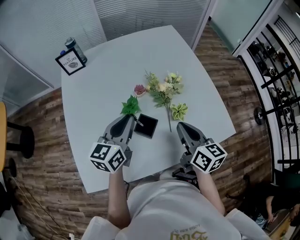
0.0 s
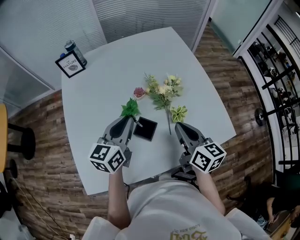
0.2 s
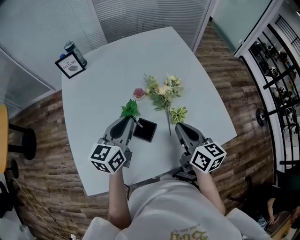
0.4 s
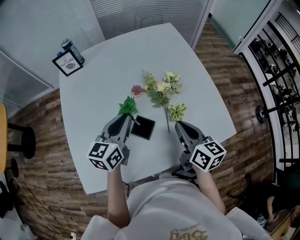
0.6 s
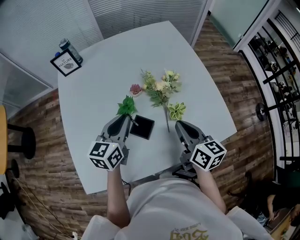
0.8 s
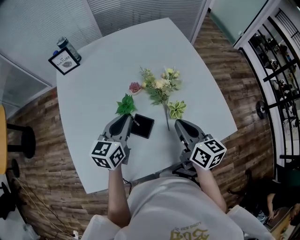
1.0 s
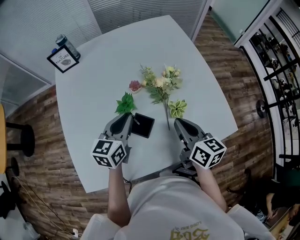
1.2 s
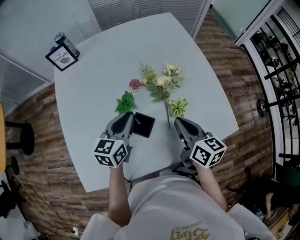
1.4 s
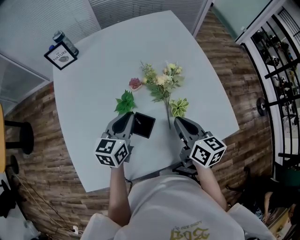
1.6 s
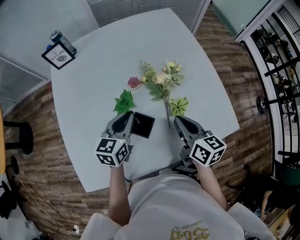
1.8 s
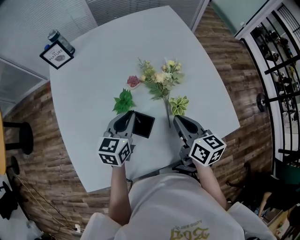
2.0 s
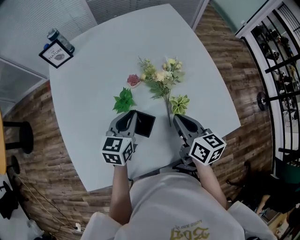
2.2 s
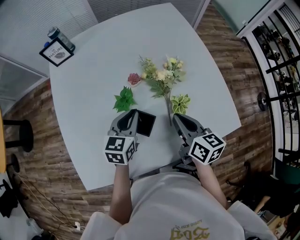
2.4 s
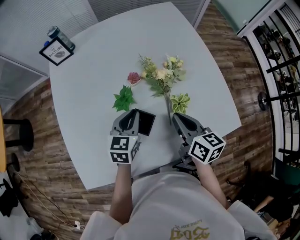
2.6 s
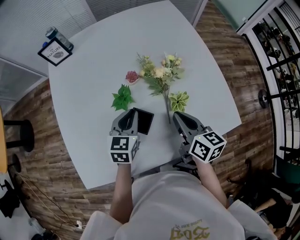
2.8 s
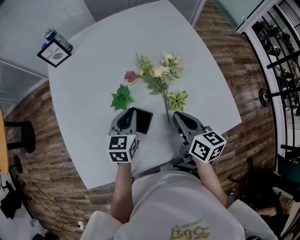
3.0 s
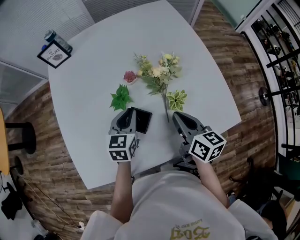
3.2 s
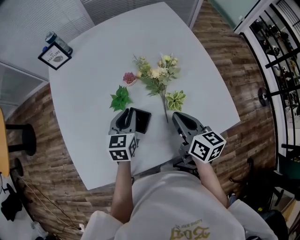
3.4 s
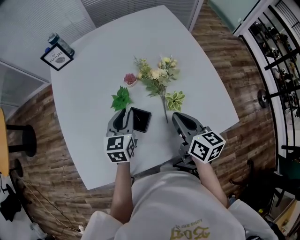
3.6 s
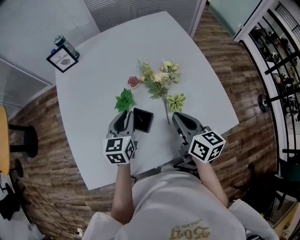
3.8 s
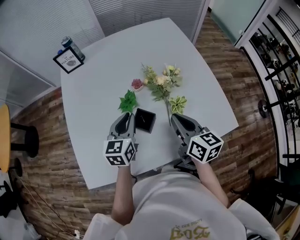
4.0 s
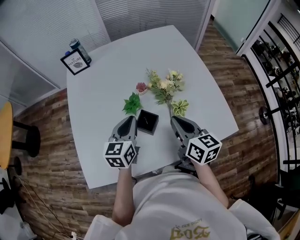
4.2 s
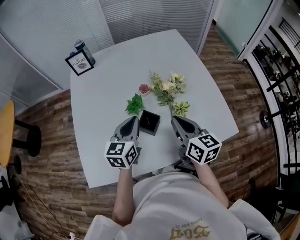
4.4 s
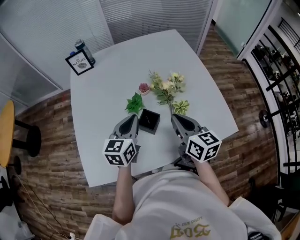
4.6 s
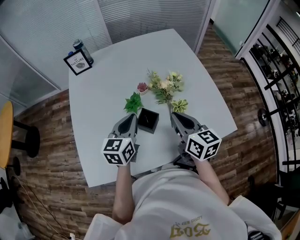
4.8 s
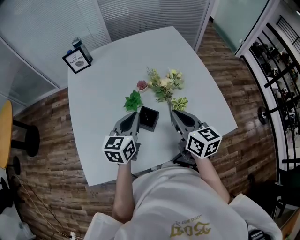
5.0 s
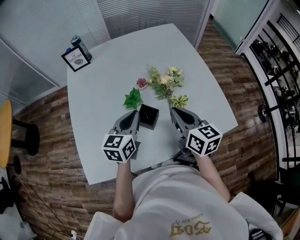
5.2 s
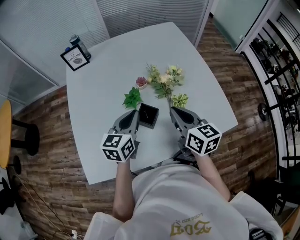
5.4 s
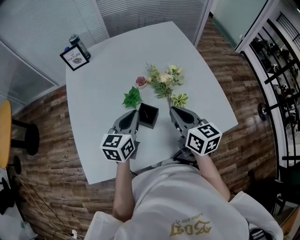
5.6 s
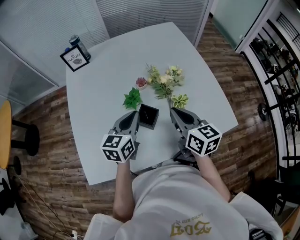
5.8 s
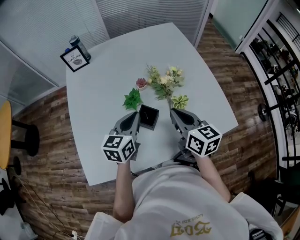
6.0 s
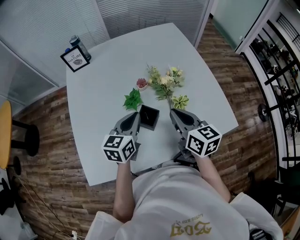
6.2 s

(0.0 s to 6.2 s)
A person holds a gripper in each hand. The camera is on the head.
0.0 s - 1.6 s: The right gripper shifts by roughly 5 cm. The left gripper moves downward, roughly 10 cm.
1.6 s - 3.2 s: The left gripper shifts roughly 5 cm downward.
3.2 s - 4.6 s: The left gripper travels upward and backward by approximately 10 cm. Meanwhile the right gripper is displaced upward by about 10 cm.
4.6 s - 6.2 s: The grippers stay close to where they were, moving slightly.

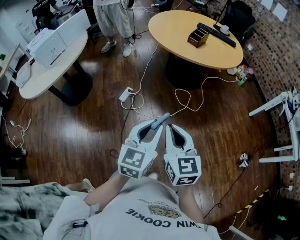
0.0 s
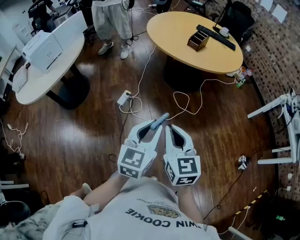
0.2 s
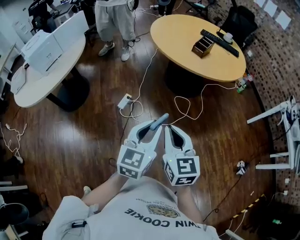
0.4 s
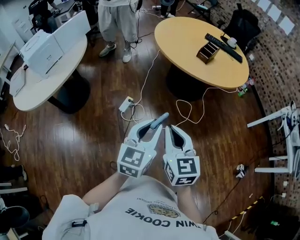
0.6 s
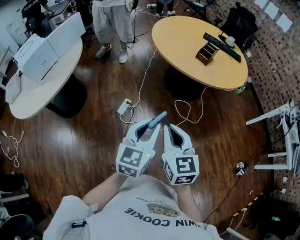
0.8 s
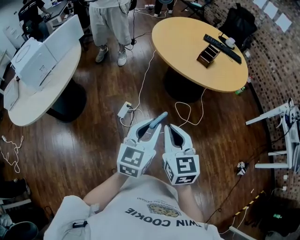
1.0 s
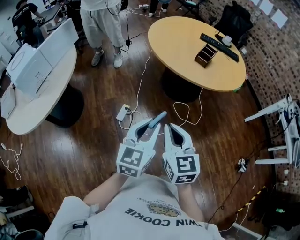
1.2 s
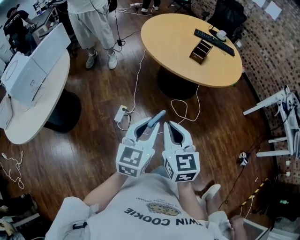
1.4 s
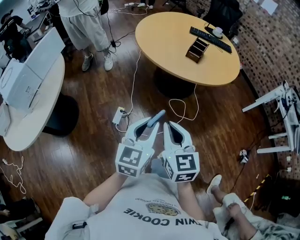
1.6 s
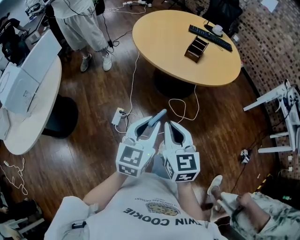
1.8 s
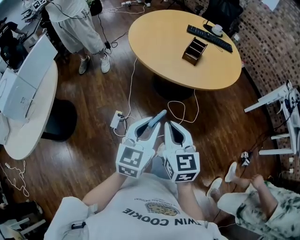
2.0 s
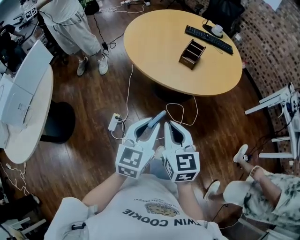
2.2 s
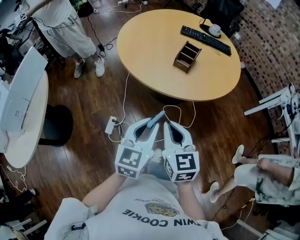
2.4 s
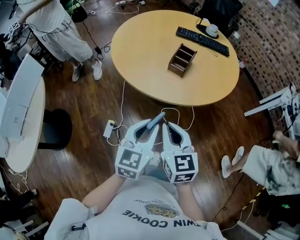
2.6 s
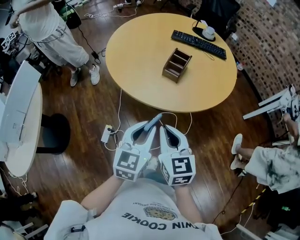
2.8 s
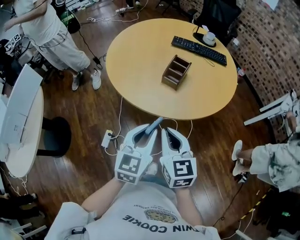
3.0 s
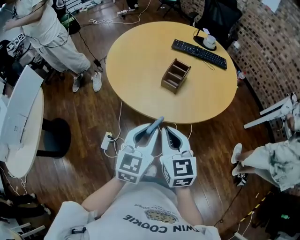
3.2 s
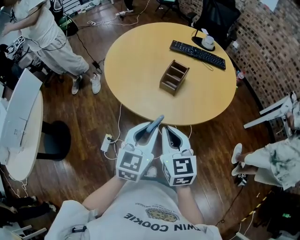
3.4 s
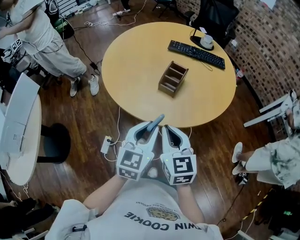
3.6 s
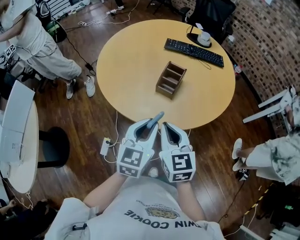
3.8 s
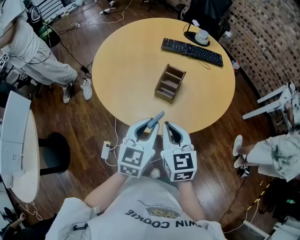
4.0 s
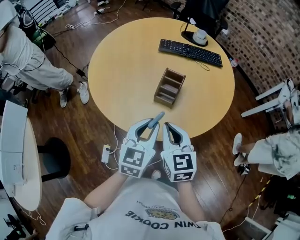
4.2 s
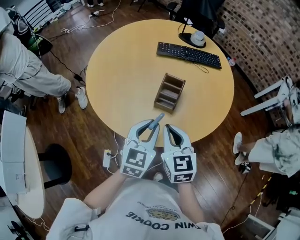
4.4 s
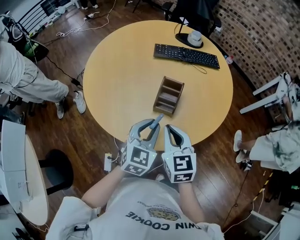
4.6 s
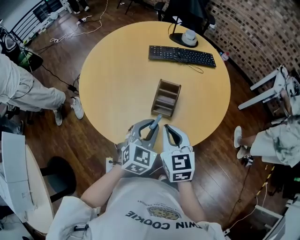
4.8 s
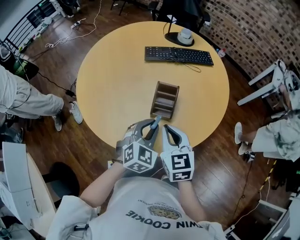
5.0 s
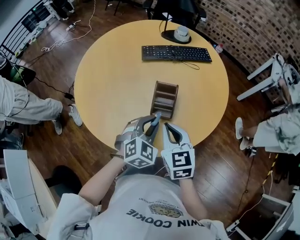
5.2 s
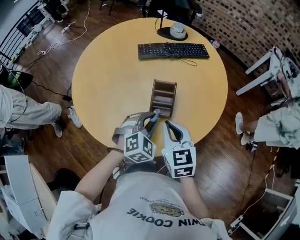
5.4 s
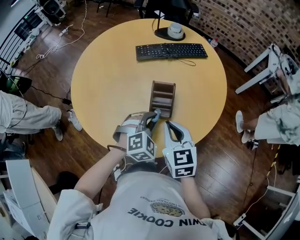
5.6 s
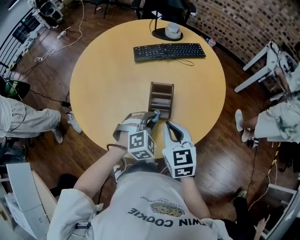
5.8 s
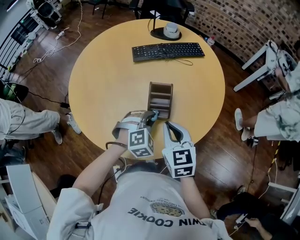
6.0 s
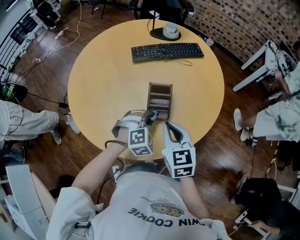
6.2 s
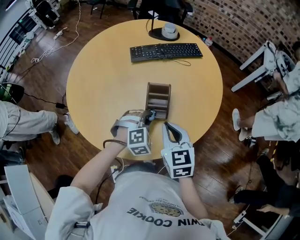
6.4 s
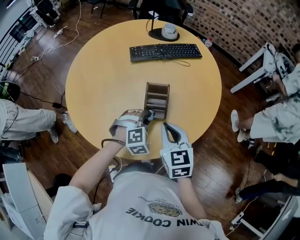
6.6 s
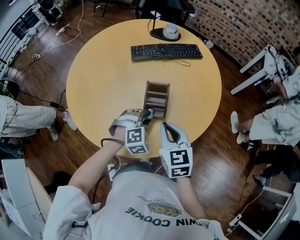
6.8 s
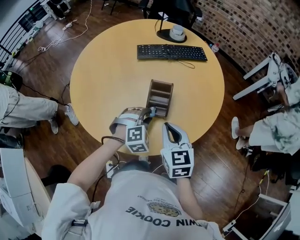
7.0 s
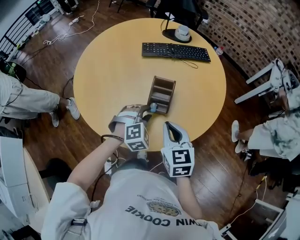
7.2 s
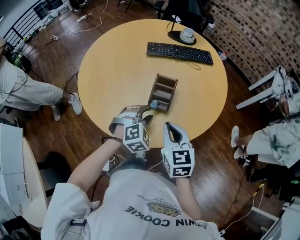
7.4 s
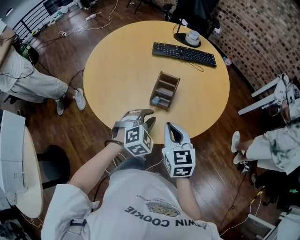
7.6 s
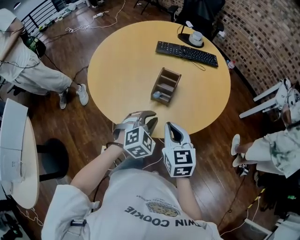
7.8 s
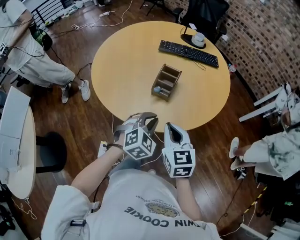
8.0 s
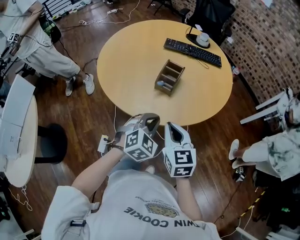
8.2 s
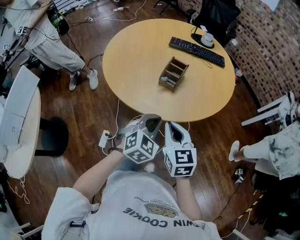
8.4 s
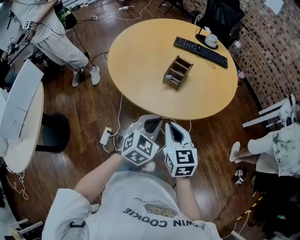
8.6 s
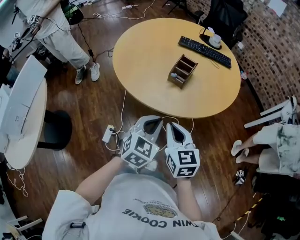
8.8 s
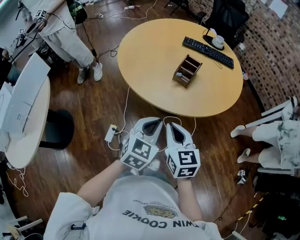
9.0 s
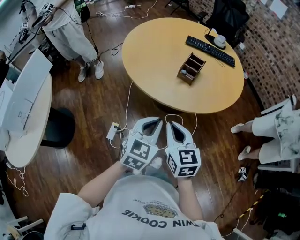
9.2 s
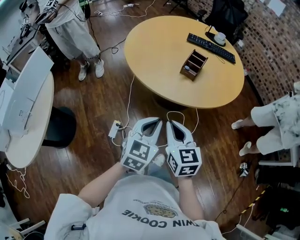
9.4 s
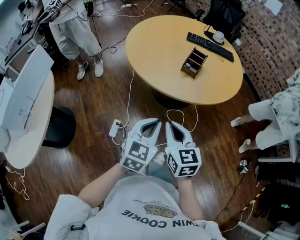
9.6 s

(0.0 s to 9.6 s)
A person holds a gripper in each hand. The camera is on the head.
0.0 s - 1.6 s: Both grippers move forward and to the left, some 30 cm.
1.6 s - 3.2 s: The two grippers go about 35 cm forward and to the right.
3.2 s - 4.8 s: The grippers both shift forward by approximately 20 cm. The left gripper swivels about 30 degrees.
4.8 s - 6.4 s: The left gripper heads downward and forward, covering approximately 15 cm, and rotates around the line of its fingers by approximately 50 degrees, clockwise from behind; the right gripper shifts by about 5 cm.
6.4 s - 8.0 s: The right gripper travels backward by approximately 15 cm, while the left gripper is displaced backward and upward by approximately 20 cm, and changes its angle by about 40 degrees.
8.0 s - 9.6 s: The grippers both shift backward and to the left by approximately 25 cm. The left gripper turns by approximately 40 degrees.

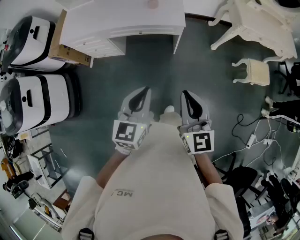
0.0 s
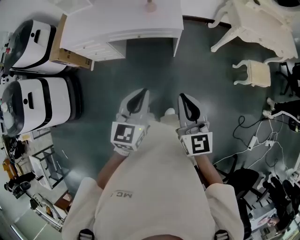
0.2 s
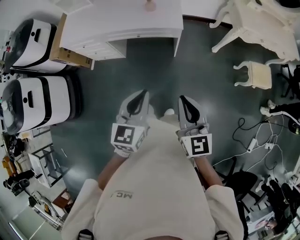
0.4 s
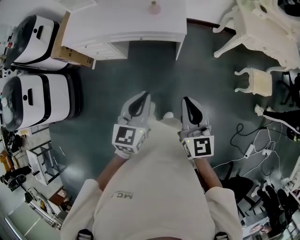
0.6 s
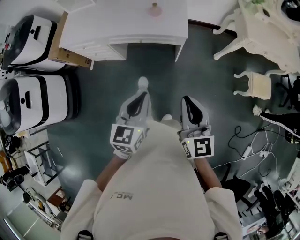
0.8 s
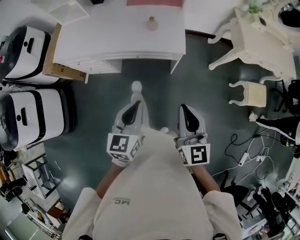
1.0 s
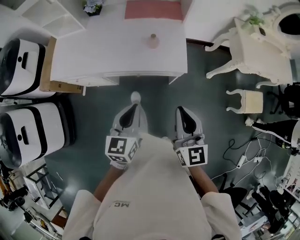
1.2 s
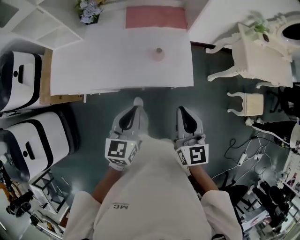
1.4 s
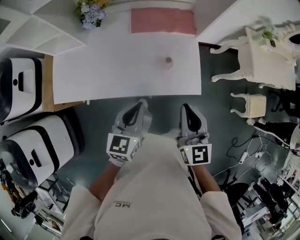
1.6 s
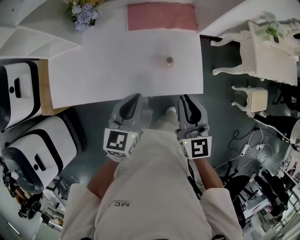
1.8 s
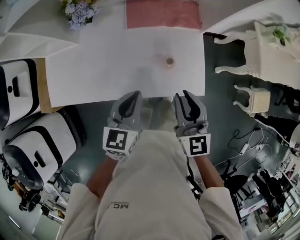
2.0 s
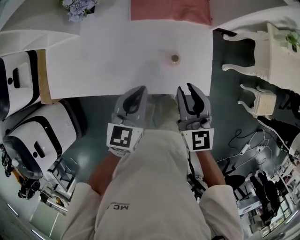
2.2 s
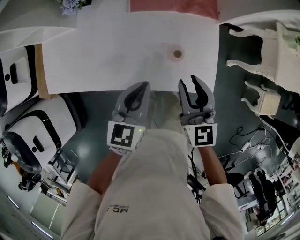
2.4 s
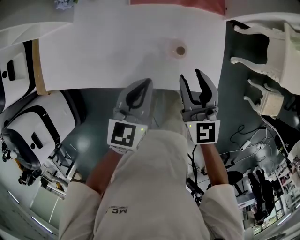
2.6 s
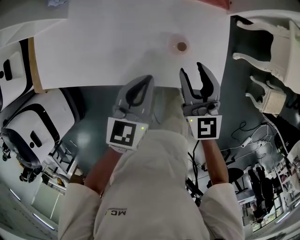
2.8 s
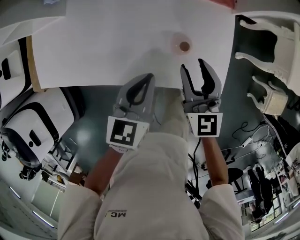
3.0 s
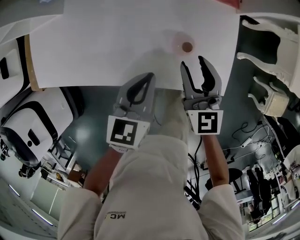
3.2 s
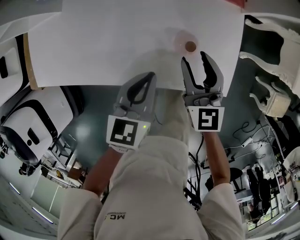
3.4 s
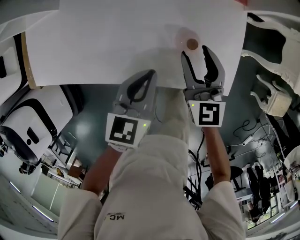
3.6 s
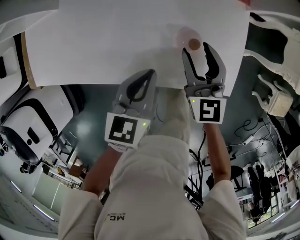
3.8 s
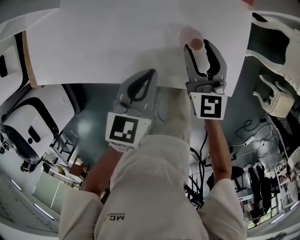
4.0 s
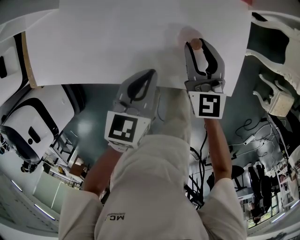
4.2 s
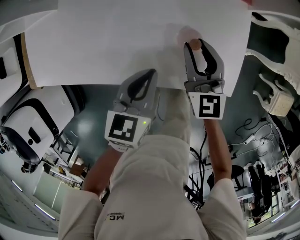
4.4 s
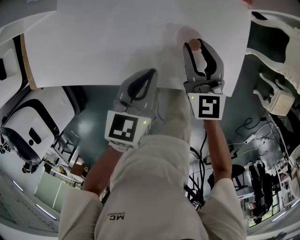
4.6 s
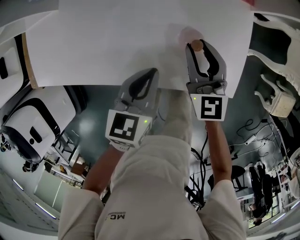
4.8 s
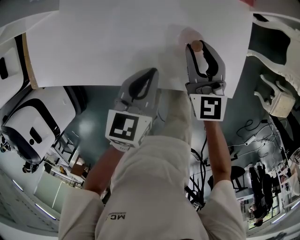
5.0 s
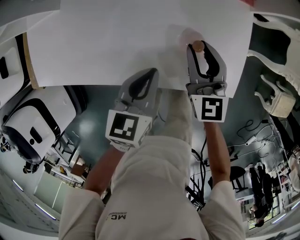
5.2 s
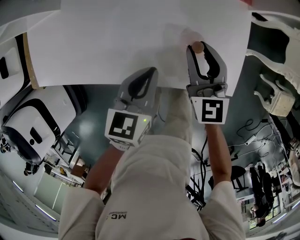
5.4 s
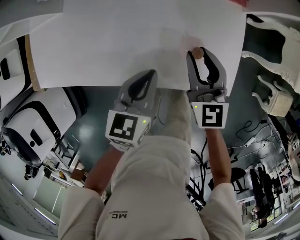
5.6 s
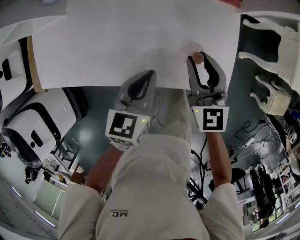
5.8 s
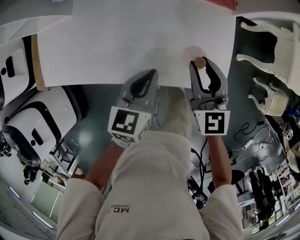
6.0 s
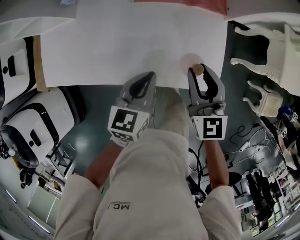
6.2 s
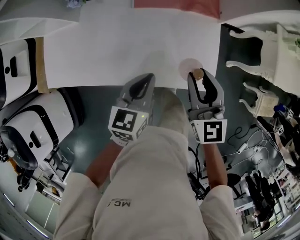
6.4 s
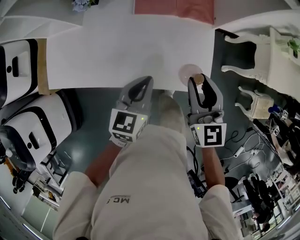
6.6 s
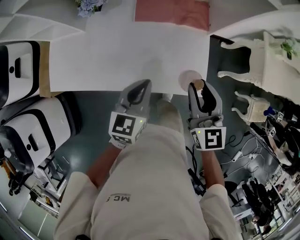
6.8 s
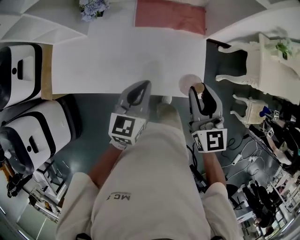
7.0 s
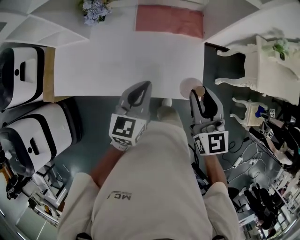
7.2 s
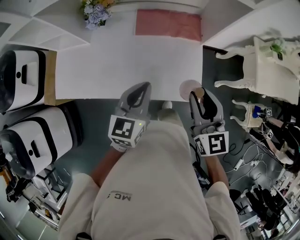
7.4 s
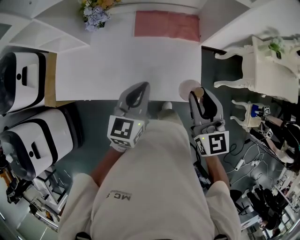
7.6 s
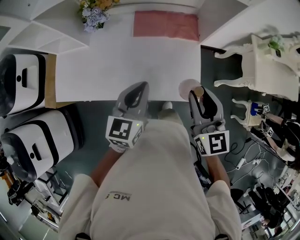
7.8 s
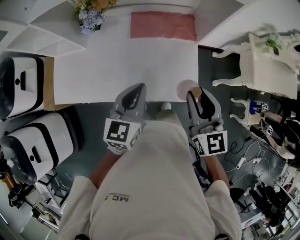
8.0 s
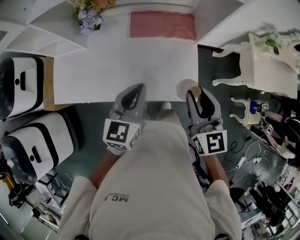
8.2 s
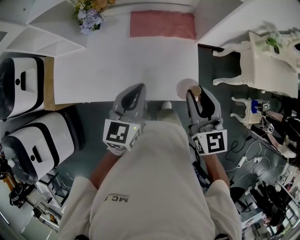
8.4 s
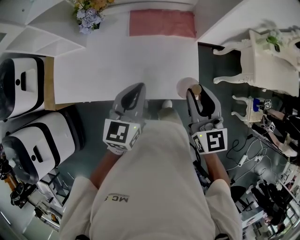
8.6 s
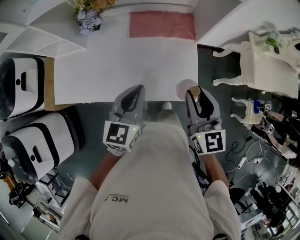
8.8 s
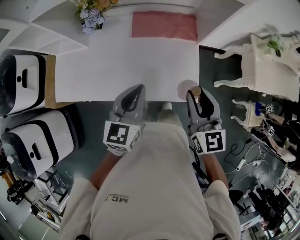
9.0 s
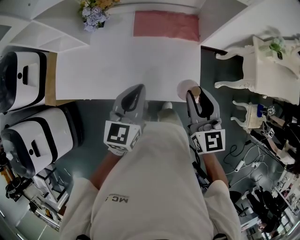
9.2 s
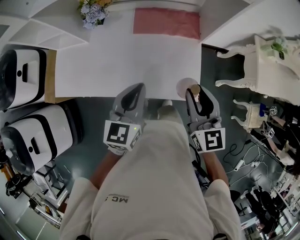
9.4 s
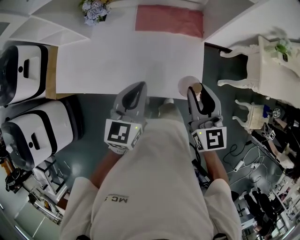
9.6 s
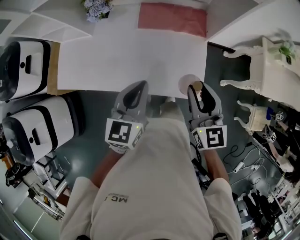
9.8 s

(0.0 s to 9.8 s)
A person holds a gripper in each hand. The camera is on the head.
0.0 s - 1.4 s: Both grippers are carried forward, some 40 cm.
1.4 s - 2.8 s: Both grippers travel together forward and downward, about 30 cm. The right gripper opens.
2.8 s - 4.2 s: The right gripper is displaced downward and forward by roughly 10 cm. The left gripper is displaced downward by approximately 10 cm.
4.2 s - 5.6 s: The grippers make only small movements.
5.6 s - 7.0 s: Both grippers travel together upward, approximately 25 cm.
7.0 s - 8.4 s: The left gripper travels upward by approximately 5 cm.
8.4 s - 9.8 s: There are only small adjustments of the grippers.
